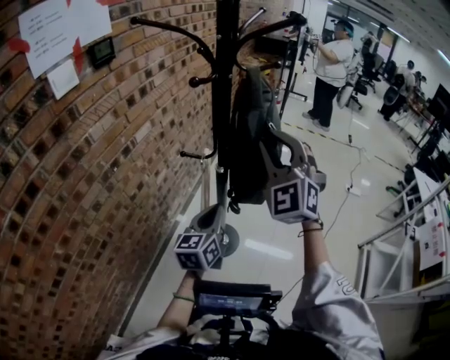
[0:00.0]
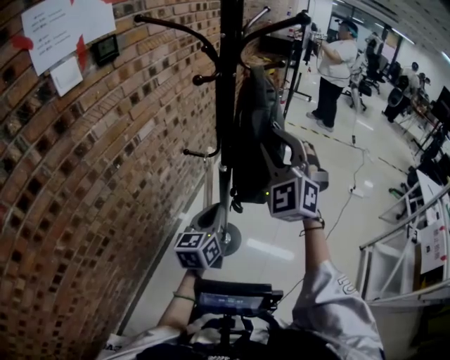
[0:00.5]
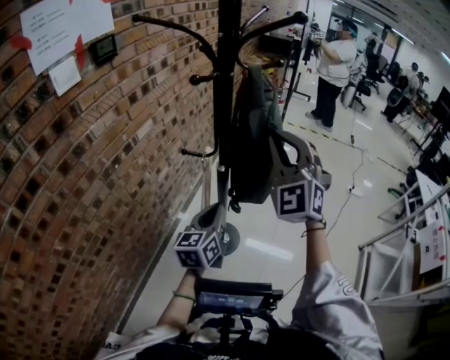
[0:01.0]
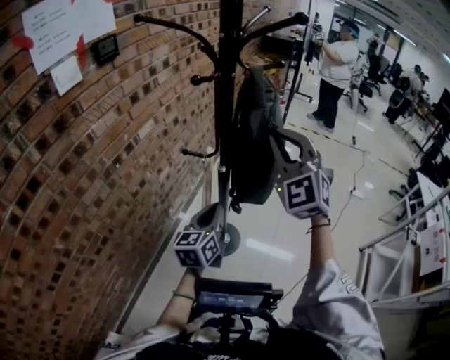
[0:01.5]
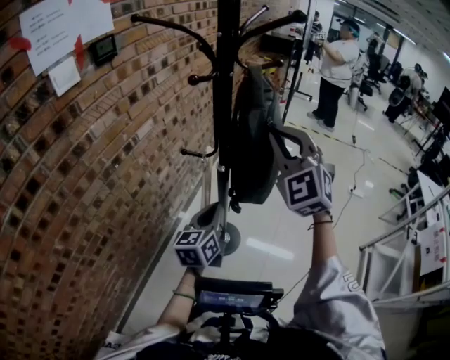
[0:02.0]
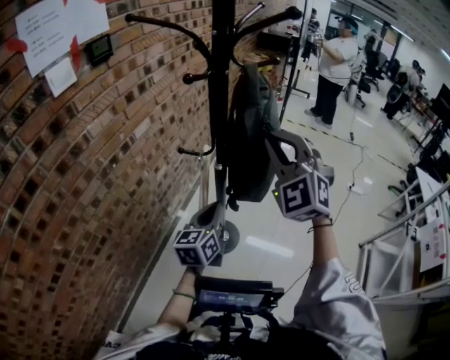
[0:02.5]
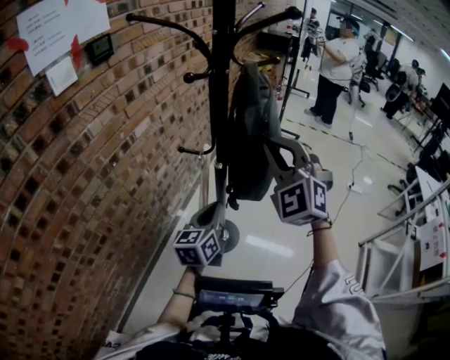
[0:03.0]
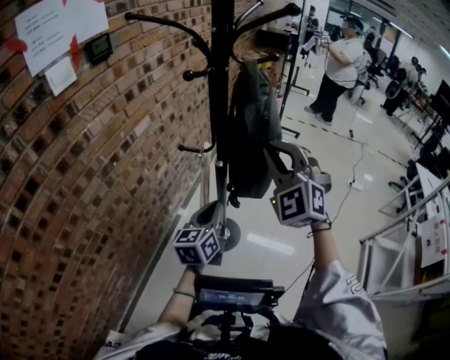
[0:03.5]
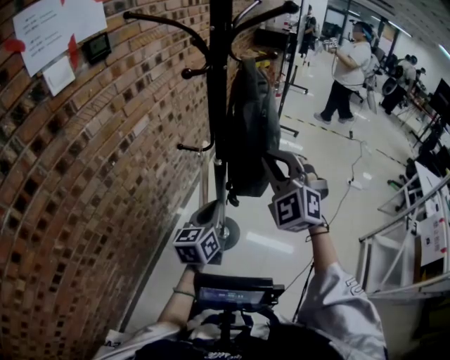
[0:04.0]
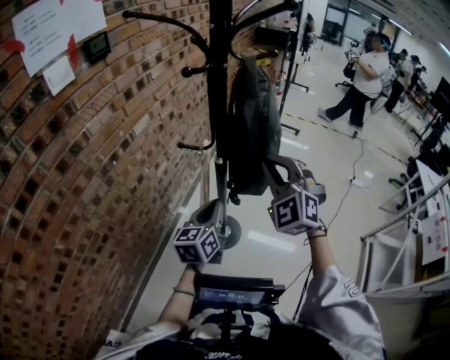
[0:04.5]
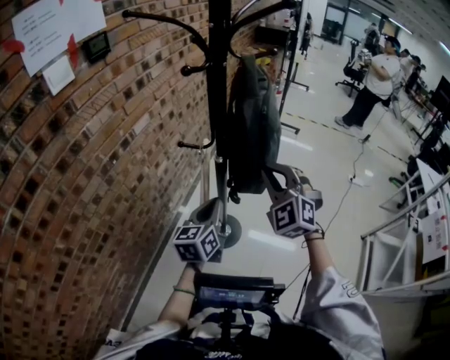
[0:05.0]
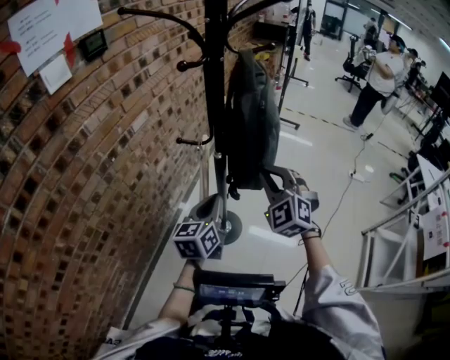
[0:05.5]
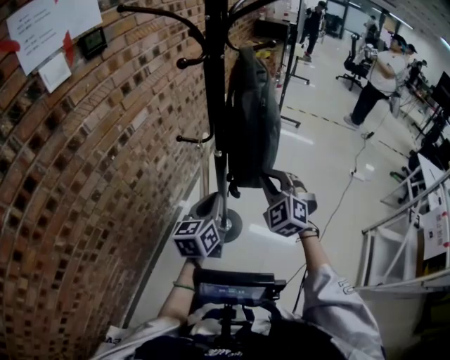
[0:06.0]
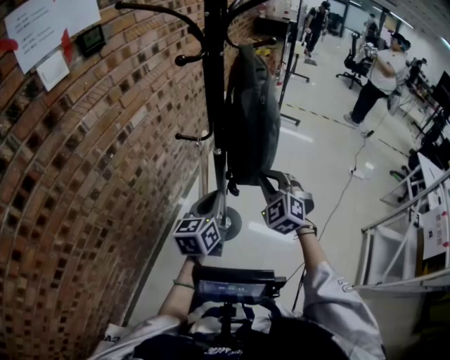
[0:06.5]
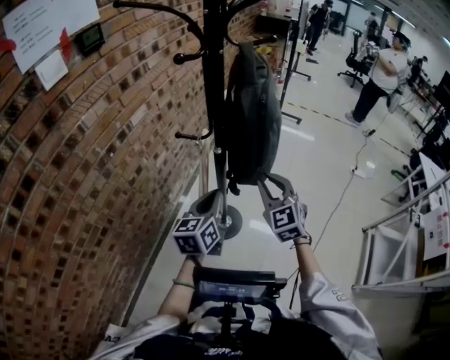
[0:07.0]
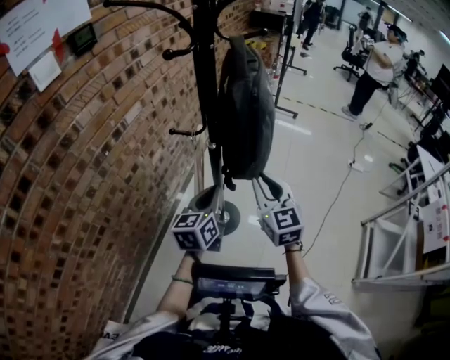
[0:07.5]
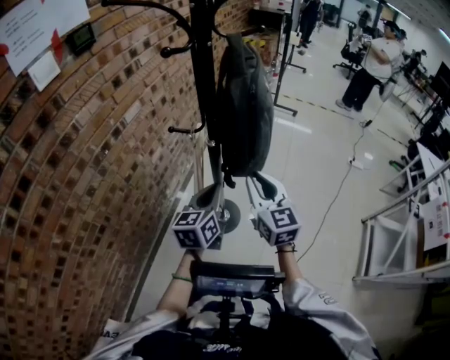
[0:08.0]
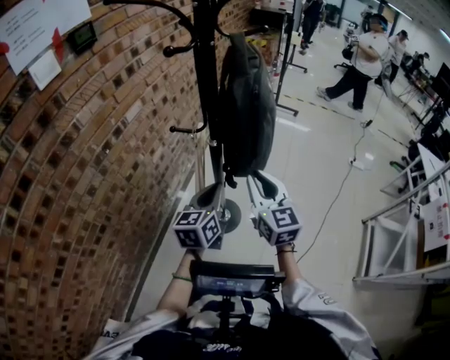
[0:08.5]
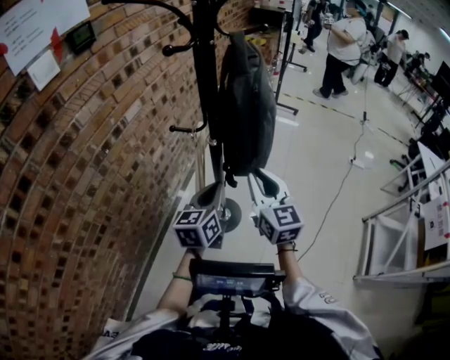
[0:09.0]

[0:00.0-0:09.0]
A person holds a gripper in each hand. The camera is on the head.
0:00.0 to 0:02.0: The grippers move only a little.
0:02.0 to 0:04.5: The right gripper travels downward by roughly 10 cm.
0:04.5 to 0:07.0: The right gripper moves downward, some 15 cm, and rotates roughly 30 degrees.
0:07.0 to 0:09.0: The right gripper ends up approximately 5 cm from where it was, and changes its angle by approximately 30 degrees.

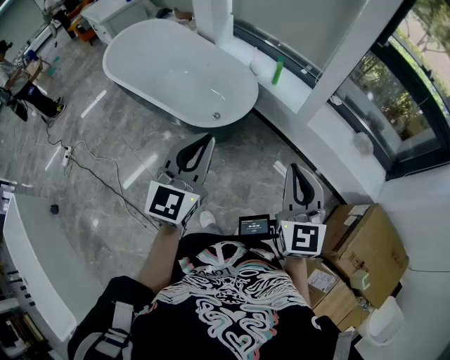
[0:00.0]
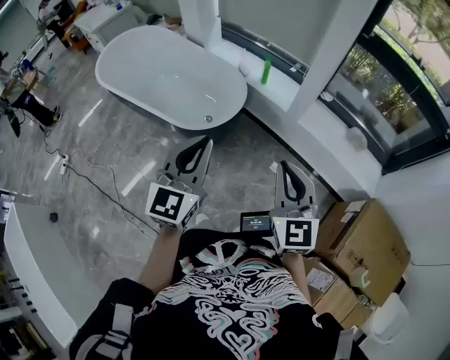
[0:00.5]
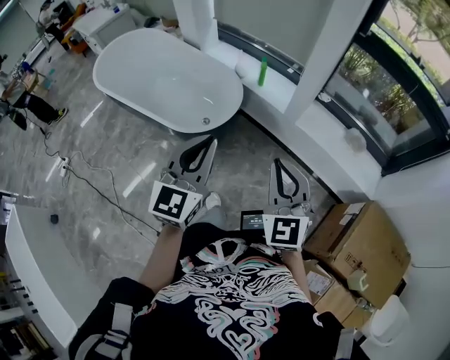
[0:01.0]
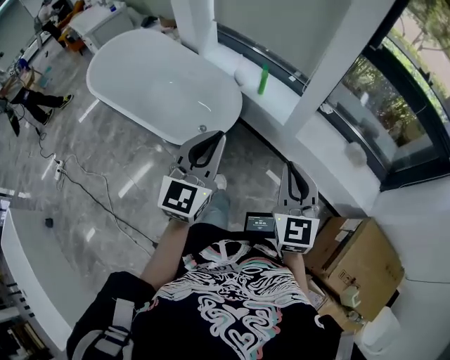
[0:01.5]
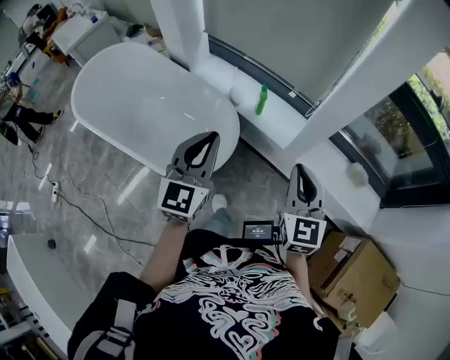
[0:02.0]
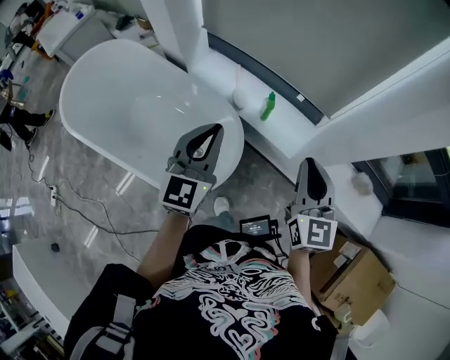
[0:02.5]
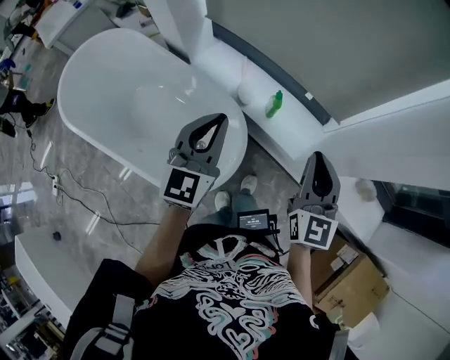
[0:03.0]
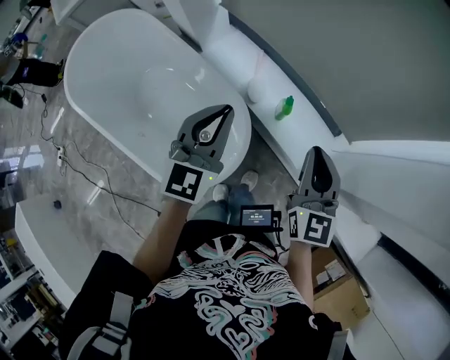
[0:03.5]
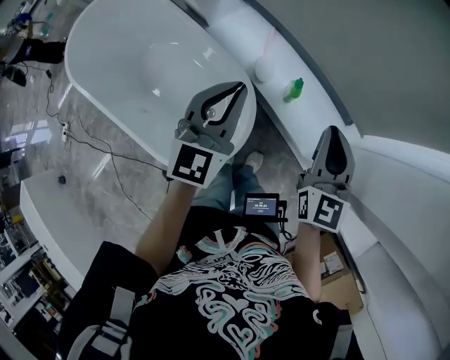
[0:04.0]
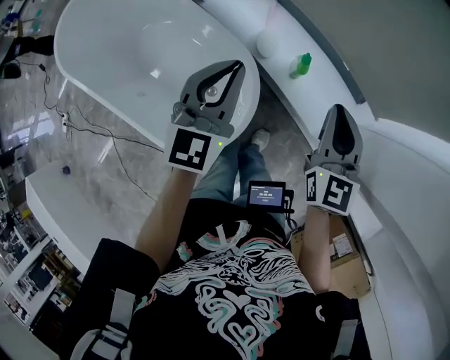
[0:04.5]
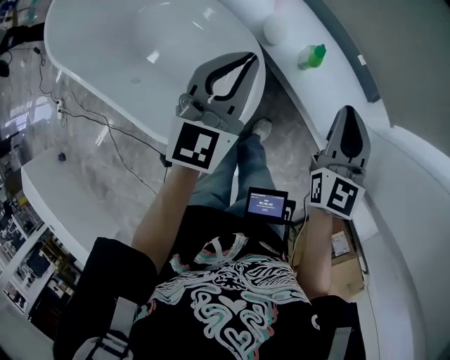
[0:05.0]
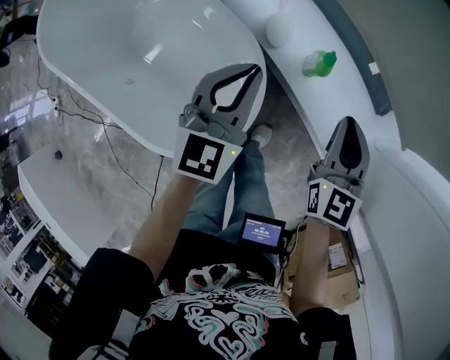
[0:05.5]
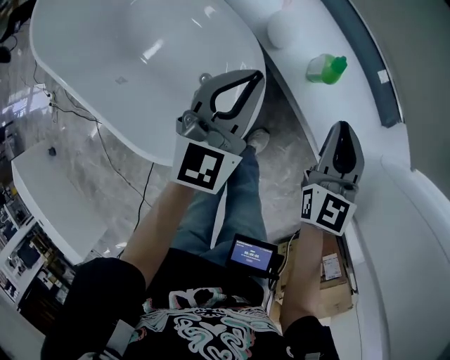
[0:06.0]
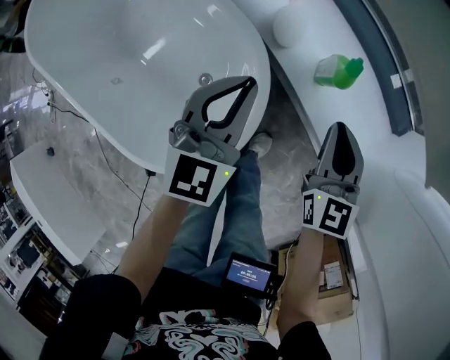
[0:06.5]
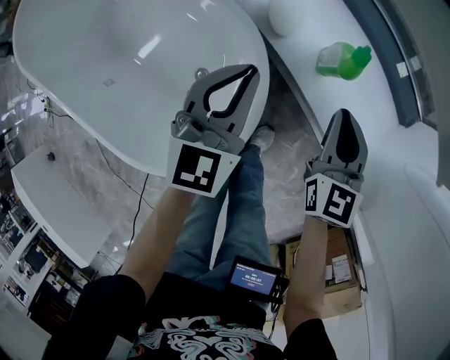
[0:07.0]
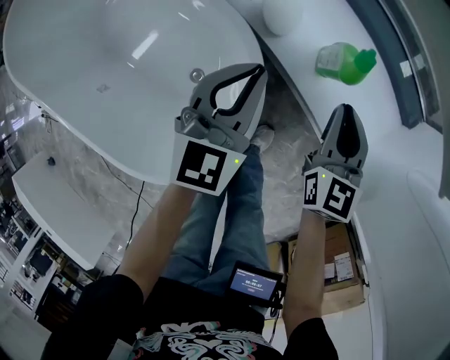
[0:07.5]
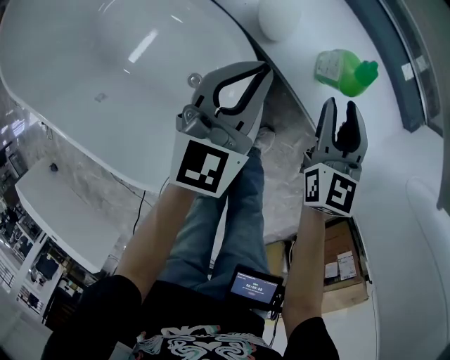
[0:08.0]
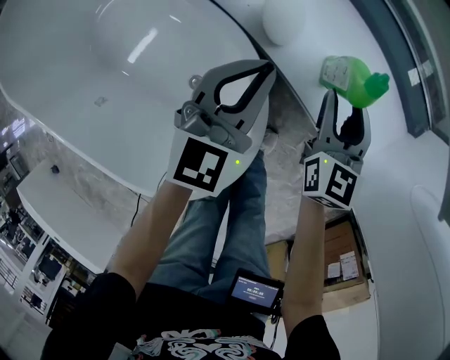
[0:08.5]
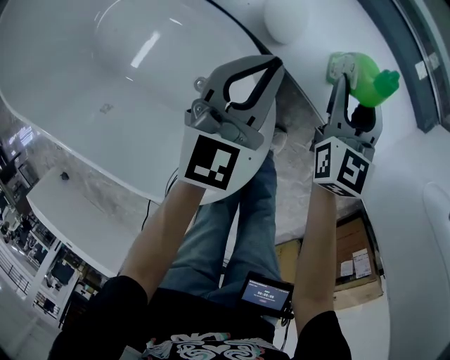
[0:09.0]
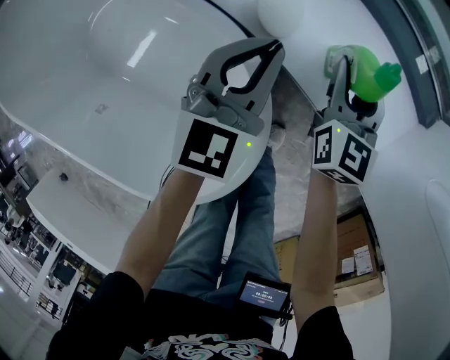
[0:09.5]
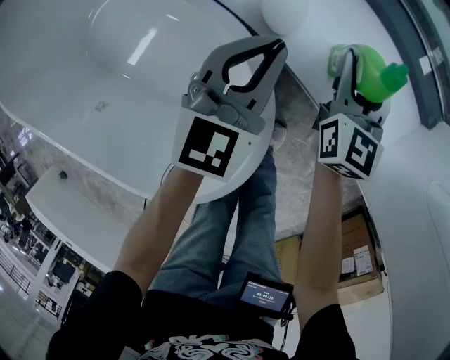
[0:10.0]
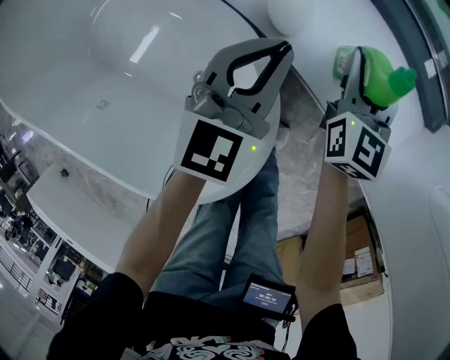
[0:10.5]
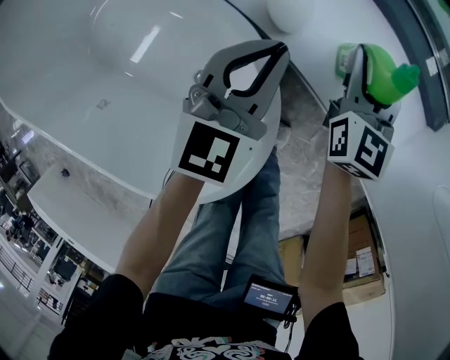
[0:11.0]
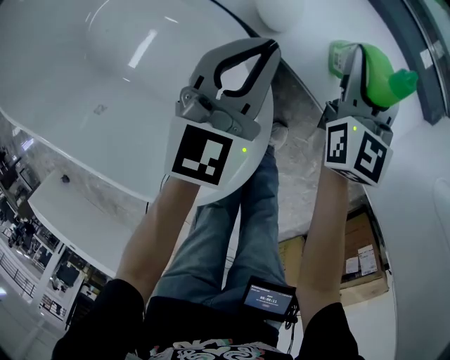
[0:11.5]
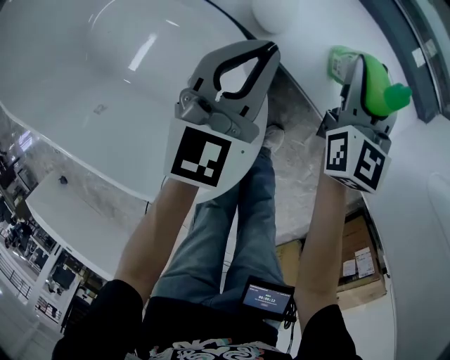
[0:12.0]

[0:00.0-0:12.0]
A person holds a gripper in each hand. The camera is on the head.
0:00.0 to 0:02.0: Both grippers travel together forward, about 35 cm.
0:02.0 to 0:04.0: Both grippers move forward, roughly 35 cm.
0:04.0 to 0:06.0: Both grippers move downward, some 25 cm.
0:06.0 to 0:08.0: The right gripper is displaced downward by about 15 cm, and opens its fingers, while the left gripper goes about 15 cm downward and forward.
0:08.0 to 0:10.0: The left gripper shifts by about 5 cm; the right gripper shifts approximately 10 cm forward.
0:10.0 to 0:12.0: The grippers stay close to where they were, moving slightly.

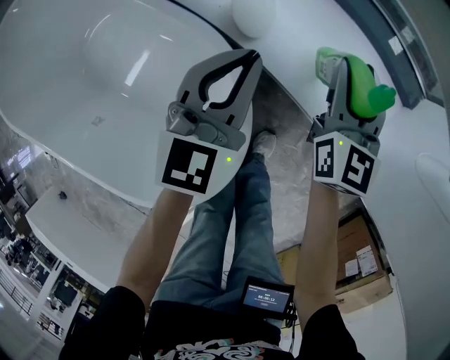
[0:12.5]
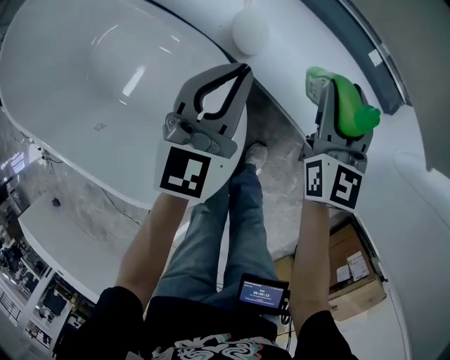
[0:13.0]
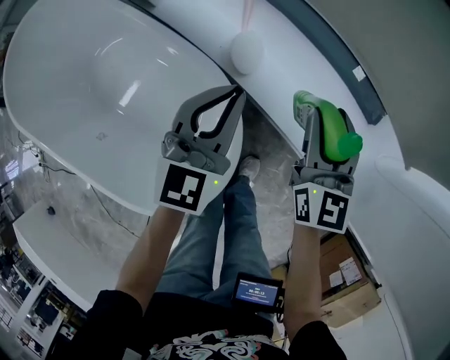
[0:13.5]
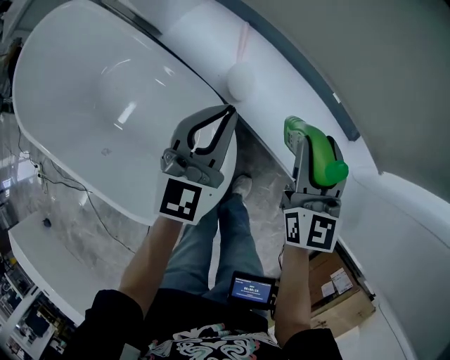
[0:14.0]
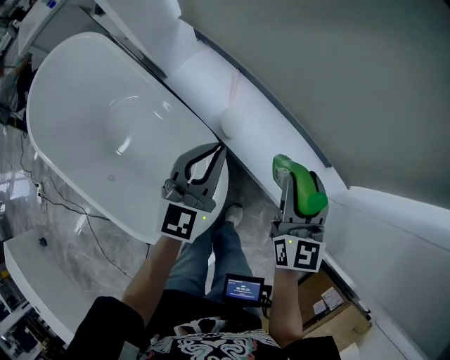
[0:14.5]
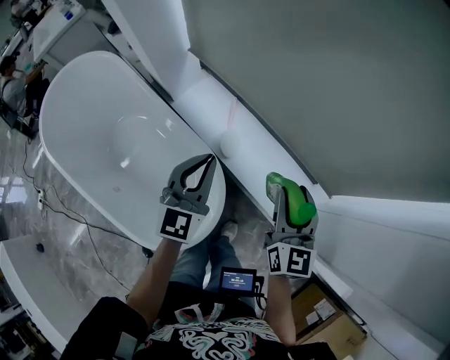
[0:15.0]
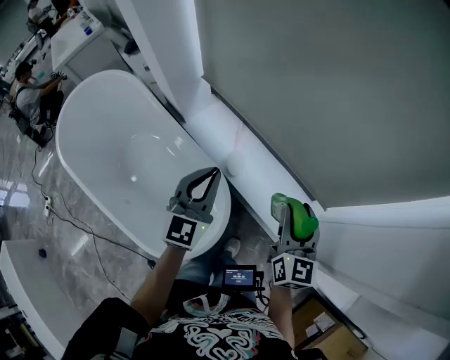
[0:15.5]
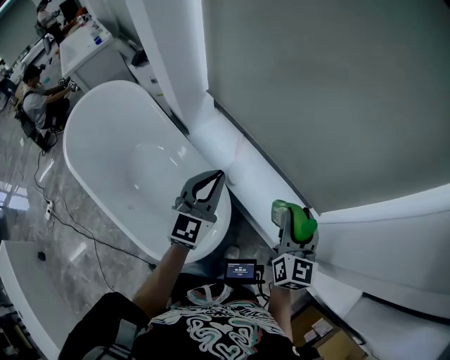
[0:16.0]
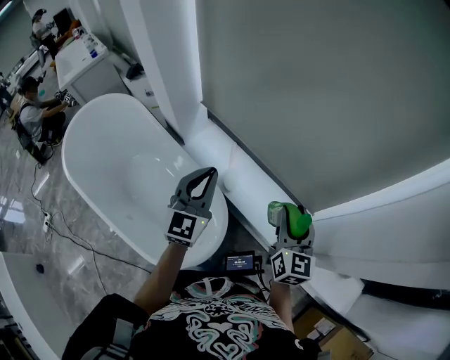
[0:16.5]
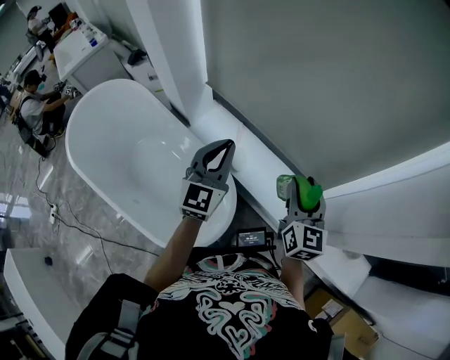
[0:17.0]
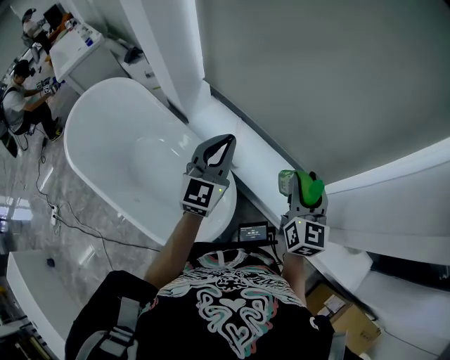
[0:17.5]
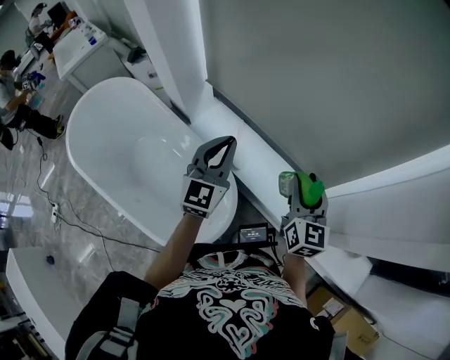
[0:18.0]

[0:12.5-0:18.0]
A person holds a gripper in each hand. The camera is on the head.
0:12.5 to 0:14.5: Both grippers move upward, about 25 cm.
0:14.5 to 0:16.0: Both grippers travel together upward, about 15 cm.
0:16.0 to 0:18.0: The grippers move only a little.

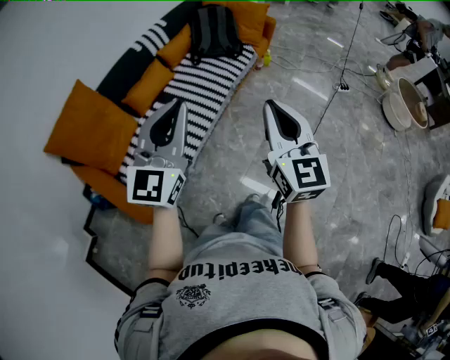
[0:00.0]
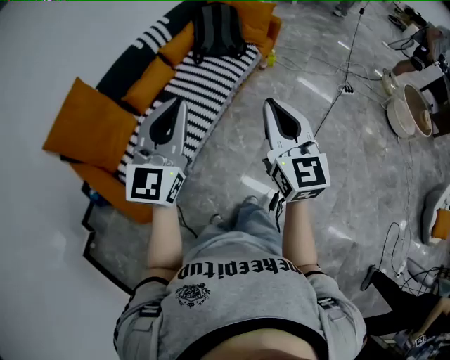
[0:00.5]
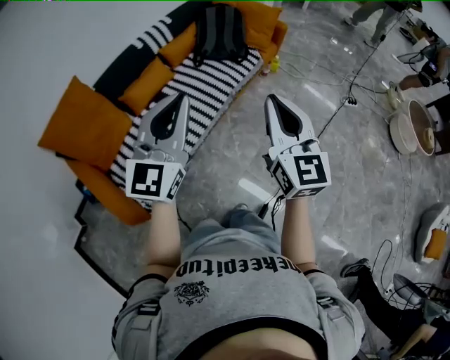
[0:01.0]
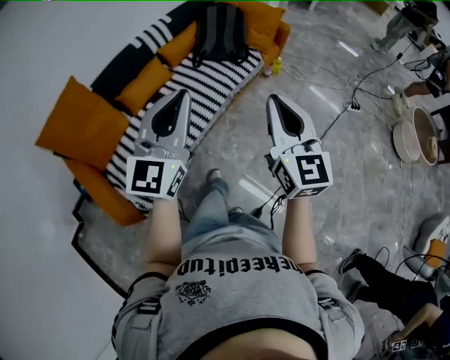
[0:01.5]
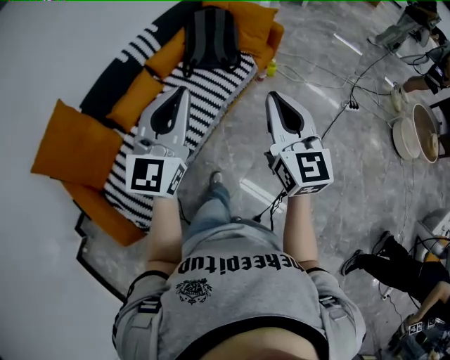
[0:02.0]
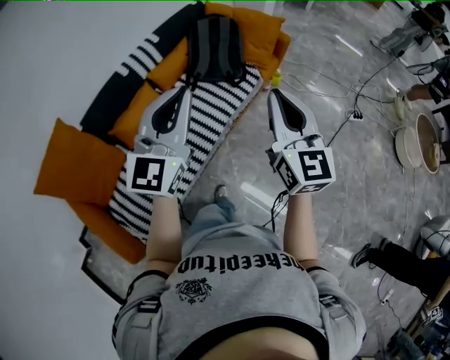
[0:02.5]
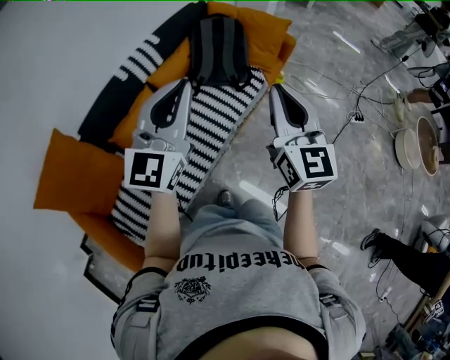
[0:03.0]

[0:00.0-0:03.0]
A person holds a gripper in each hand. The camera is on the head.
0:00.0 to 0:01.5: Both grippers travel together forward and to the right, some 15 cm.
0:01.5 to 0:03.0: Both grippers travel together forward, about 30 cm.
